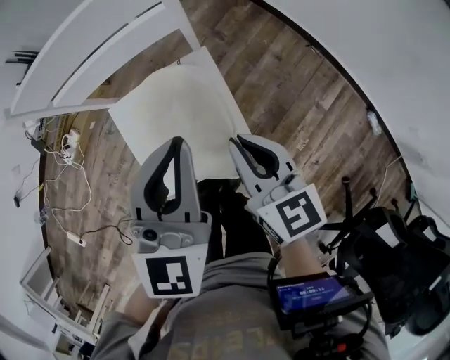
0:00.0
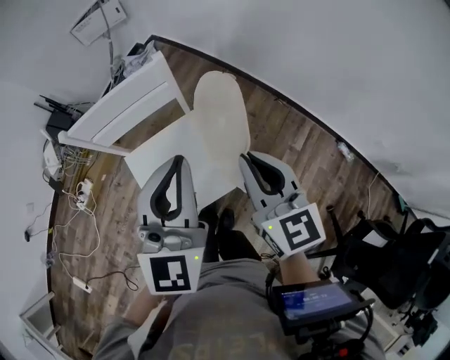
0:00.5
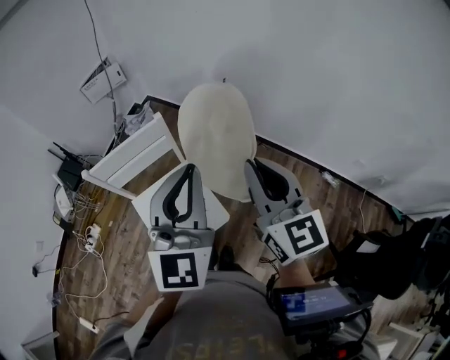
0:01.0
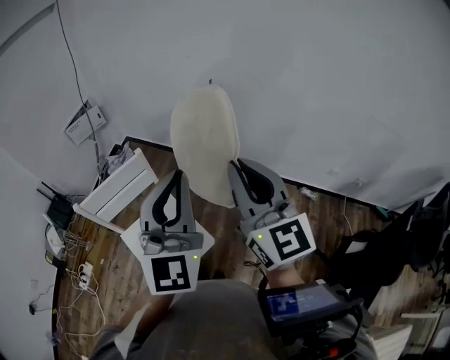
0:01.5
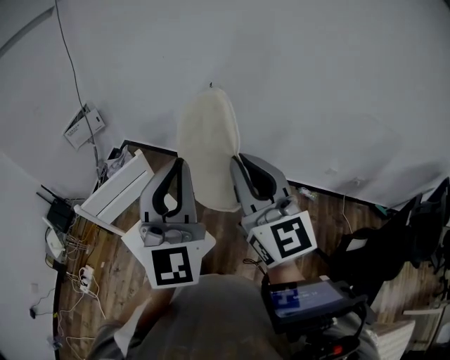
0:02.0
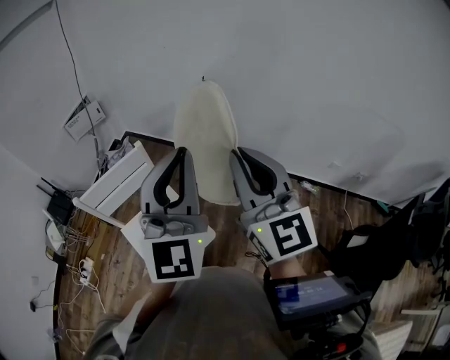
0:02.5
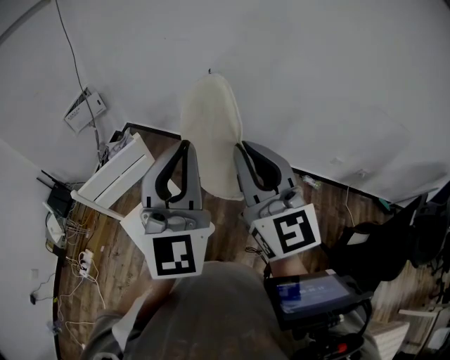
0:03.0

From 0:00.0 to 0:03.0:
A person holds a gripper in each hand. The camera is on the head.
From 0:00.0 to 0:01.5: The two grippers go roughly 35 cm upward. The right gripper angles its fingers upward, by approximately 30 degrees. The left gripper changes its angle by about 30 degrees.
From 0:01.5 to 0:03.0: The grippers move only a little.

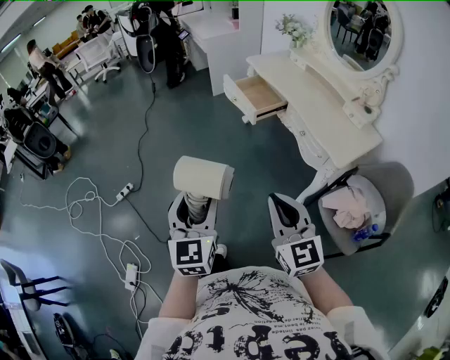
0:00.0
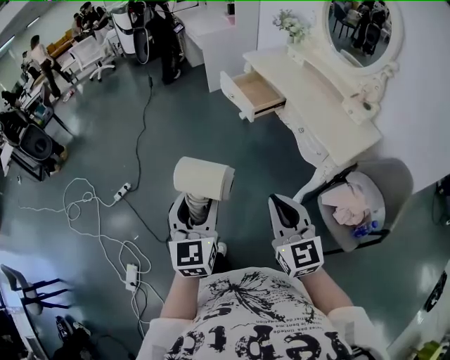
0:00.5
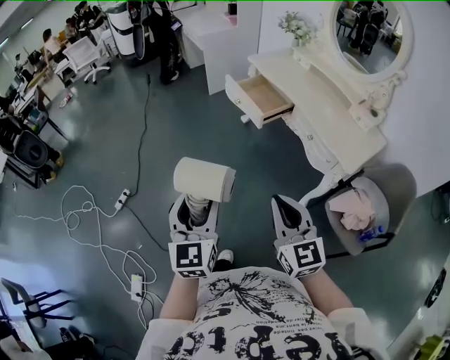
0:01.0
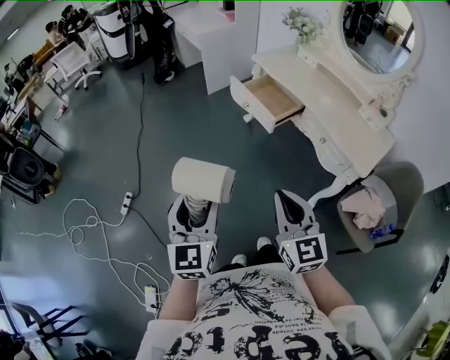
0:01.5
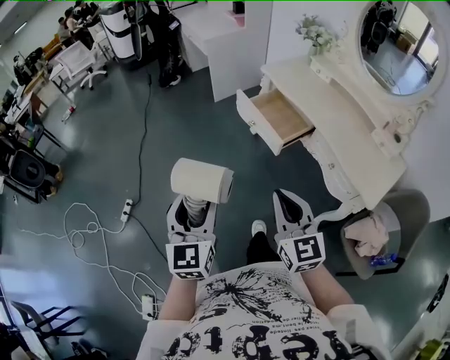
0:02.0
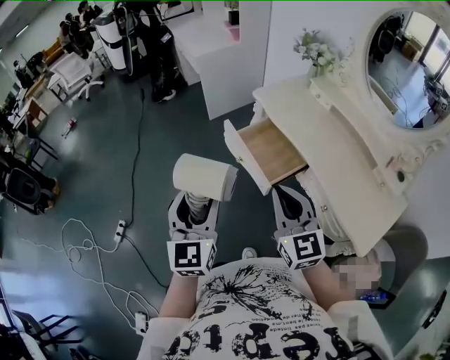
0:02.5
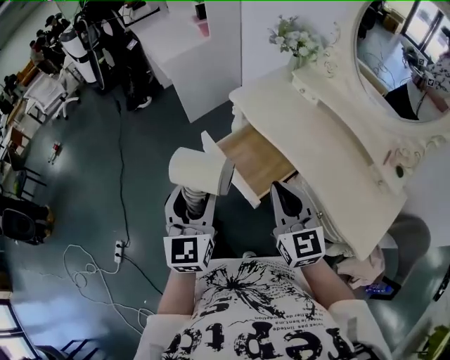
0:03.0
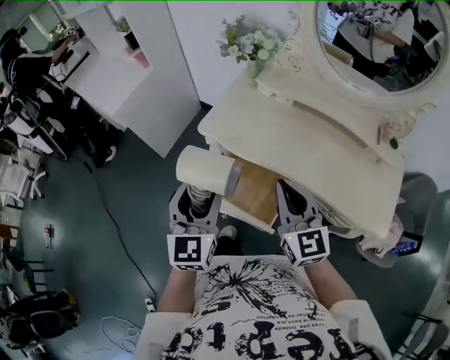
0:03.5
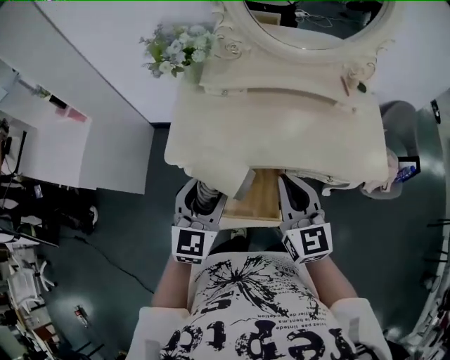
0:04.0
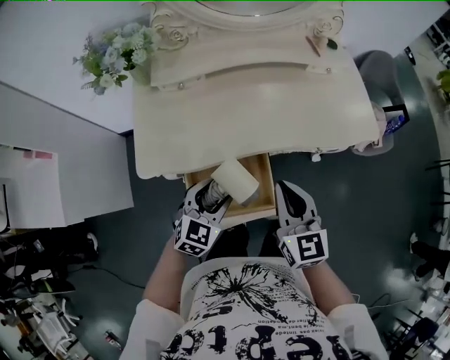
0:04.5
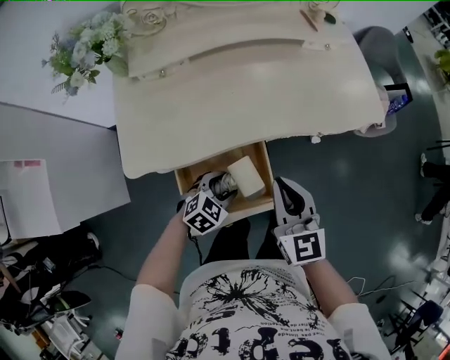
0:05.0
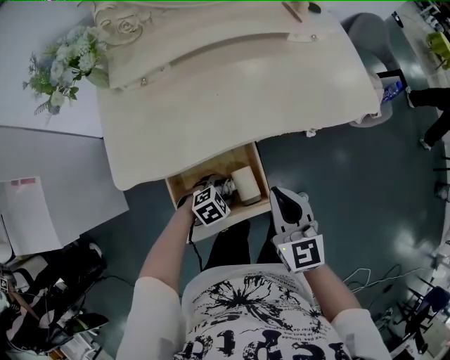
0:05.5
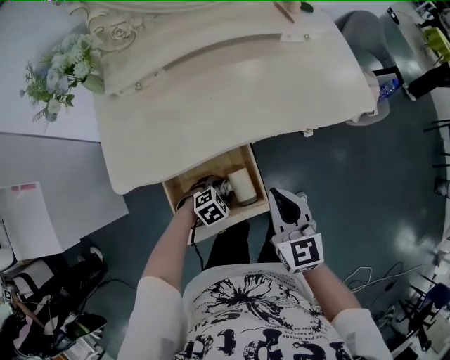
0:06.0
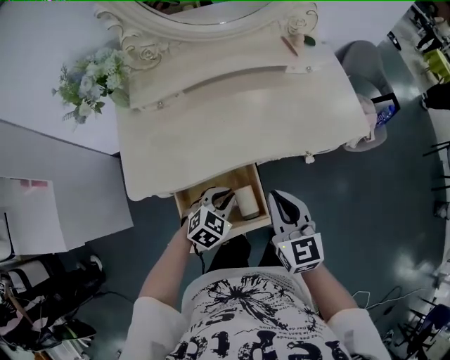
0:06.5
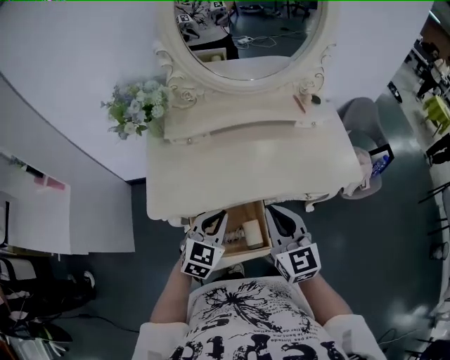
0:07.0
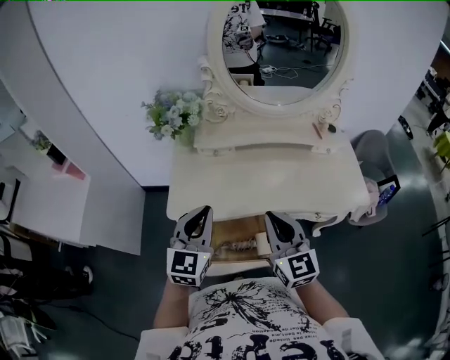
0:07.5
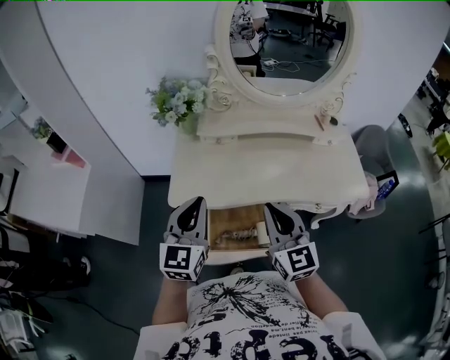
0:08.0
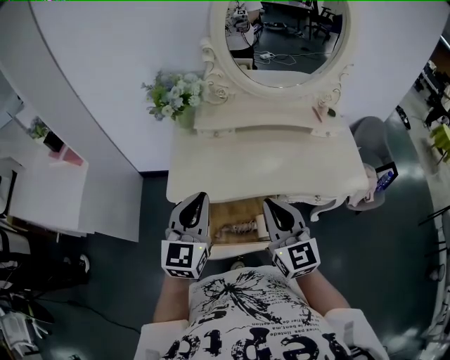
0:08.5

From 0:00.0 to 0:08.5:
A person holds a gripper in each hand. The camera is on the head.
From 0:00.0 to 0:02.0: The two grippers go roughly 30 cm forward.
From 0:02.0 to 0:04.0: The two grippers travel together, some 60 cm. The right gripper rotates approximately 60 degrees; the left gripper changes its angle by some 70 degrees.
From 0:04.0 to 0:06.5: The left gripper shifts roughly 20 cm downward, points its fingers about 30 degrees further downward, and closes, while the right gripper heads downward, covering roughly 10 cm, and swivels approximately 20 degrees.
From 0:06.5 to 0:08.5: The left gripper shifts approximately 30 cm upward, and tilts its fingers some 40 degrees upward. The right gripper shifts approximately 15 cm upward, and swivels about 20 degrees.

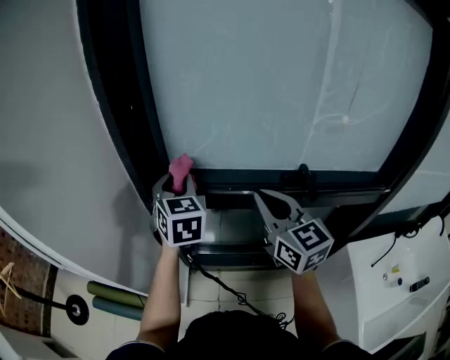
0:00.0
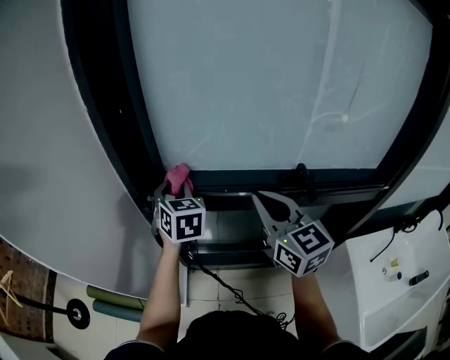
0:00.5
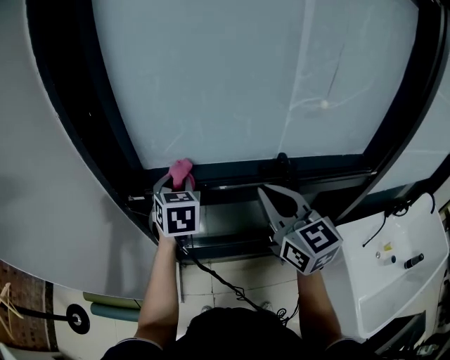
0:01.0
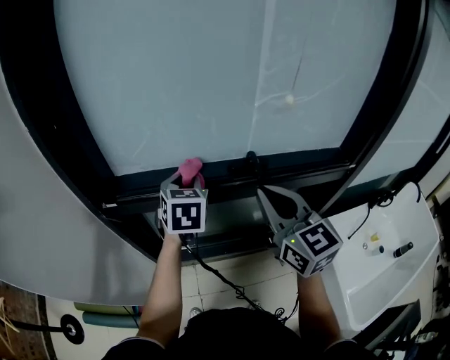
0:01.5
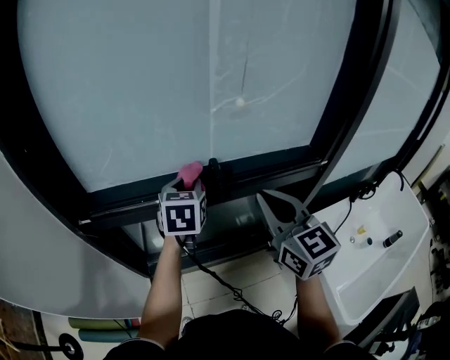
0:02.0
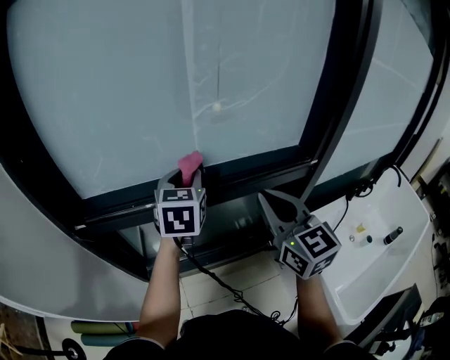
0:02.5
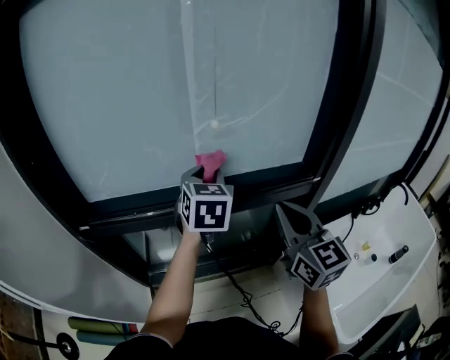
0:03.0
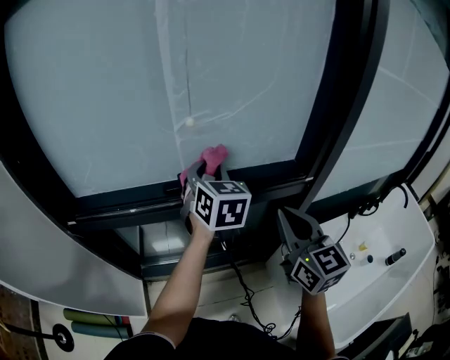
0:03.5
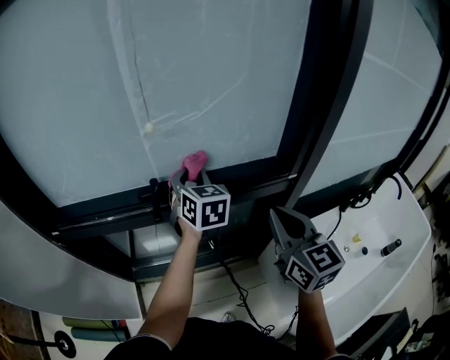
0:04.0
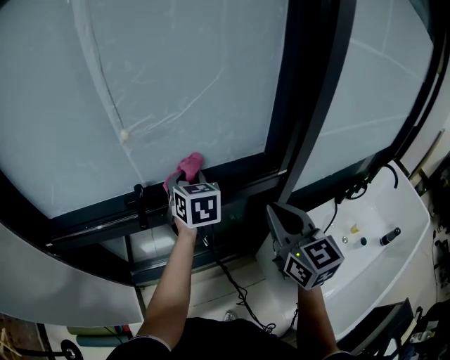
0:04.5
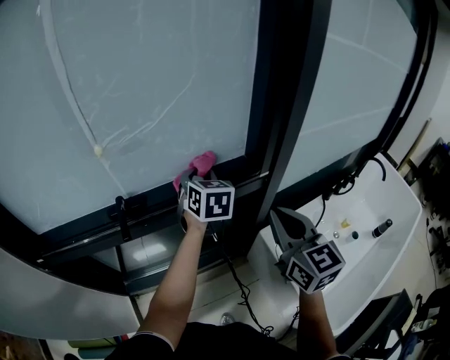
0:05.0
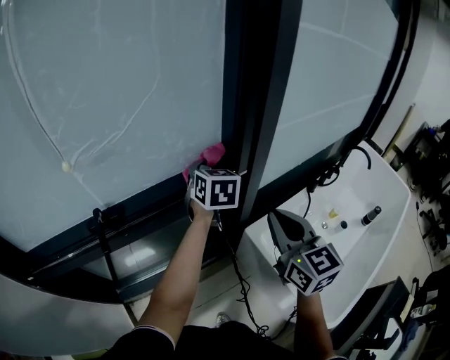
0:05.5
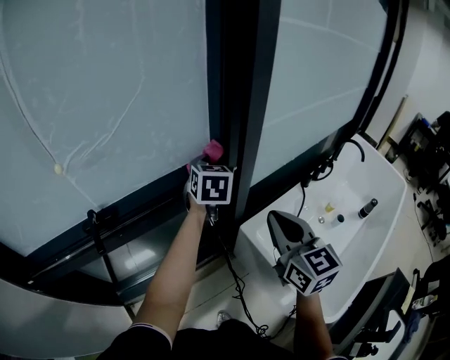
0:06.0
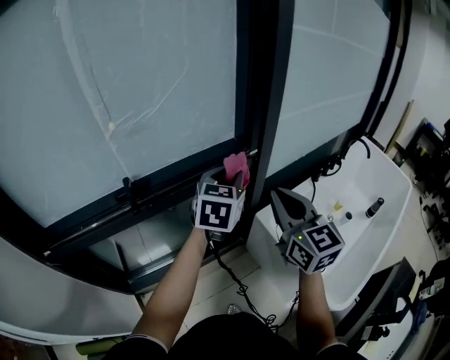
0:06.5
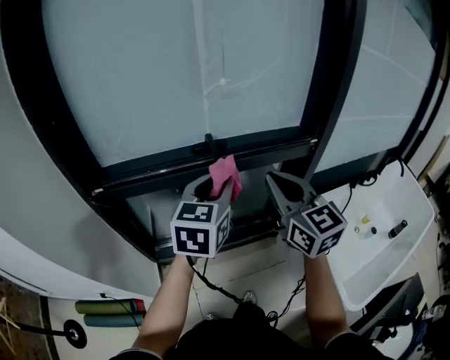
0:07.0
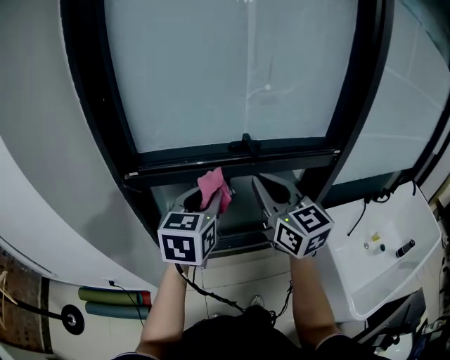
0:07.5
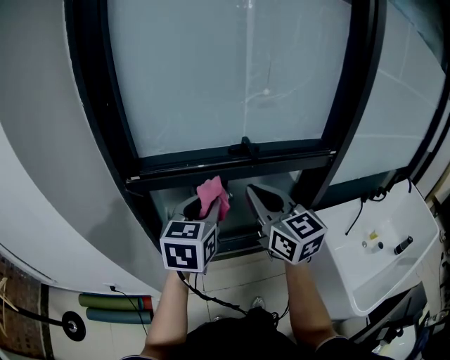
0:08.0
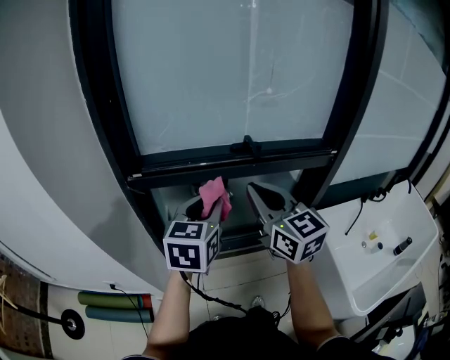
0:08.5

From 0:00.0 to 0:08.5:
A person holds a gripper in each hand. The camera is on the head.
From 0:00.0 to 0:02.0: The right gripper moves about 20 cm; the left gripper shifts by approximately 30 cm, and changes its angle by some 30 degrees.
From 0:02.0 to 0:04.0: The grippers both shift to the right by approximately 20 cm. The left gripper changes its angle by approximately 20 degrees.
From 0:04.0 to 0:06.5: The left gripper moves some 20 cm, and swivels some 40 degrees.
From 0:06.5 to 0:08.5: The left gripper shifts by approximately 40 cm, and changes its angle by some 30 degrees, while the right gripper moves roughly 35 cm, and swivels some 30 degrees.

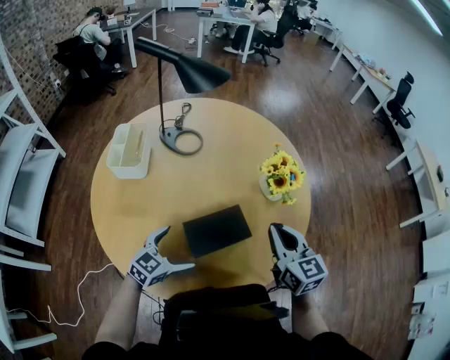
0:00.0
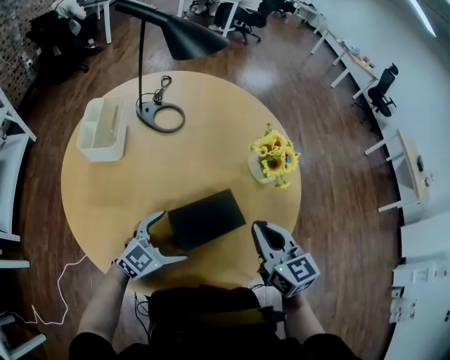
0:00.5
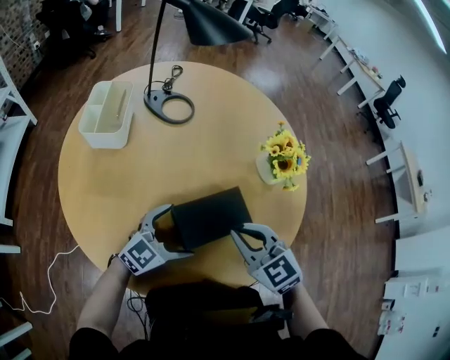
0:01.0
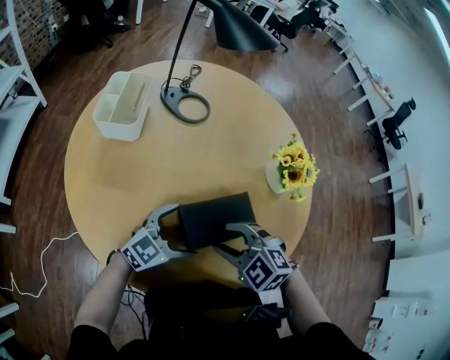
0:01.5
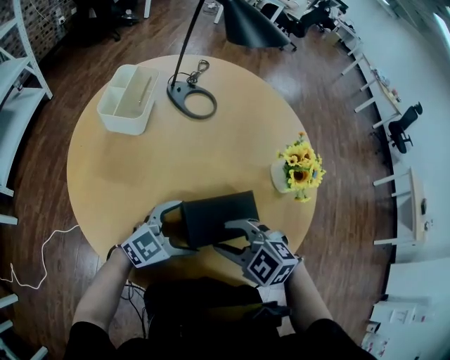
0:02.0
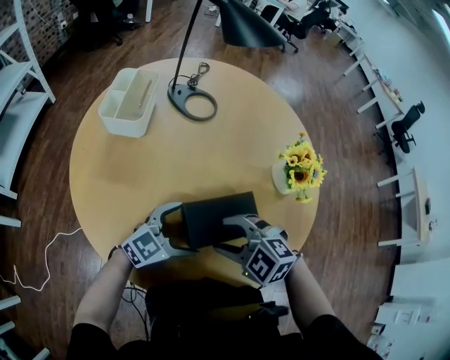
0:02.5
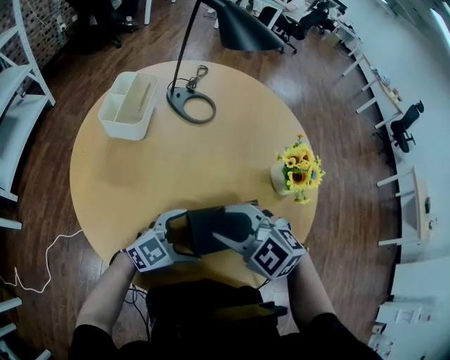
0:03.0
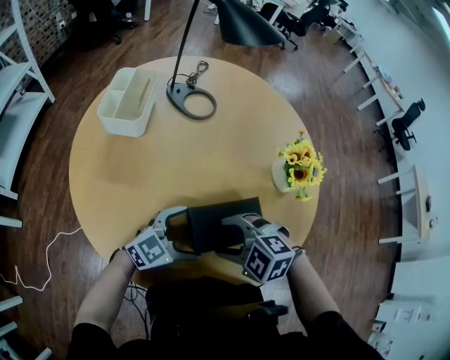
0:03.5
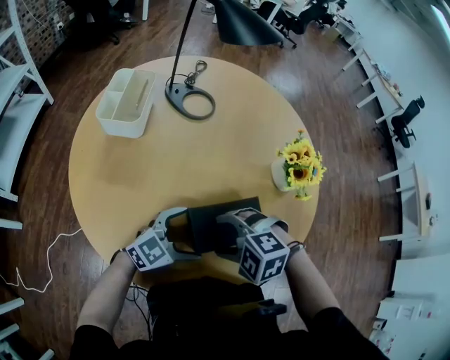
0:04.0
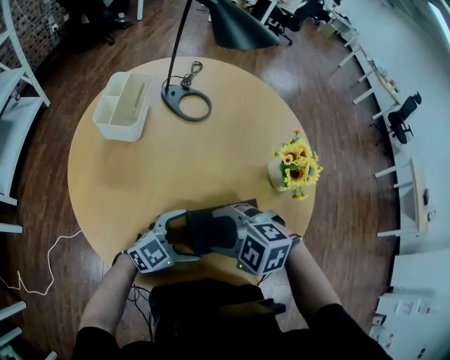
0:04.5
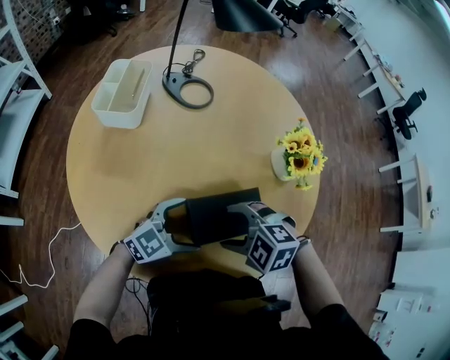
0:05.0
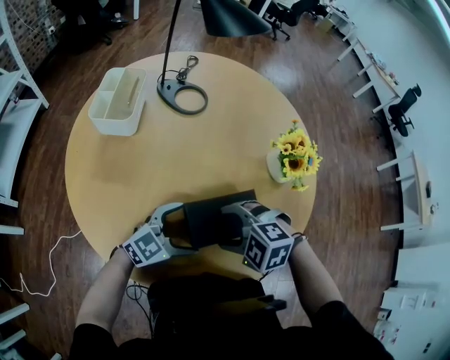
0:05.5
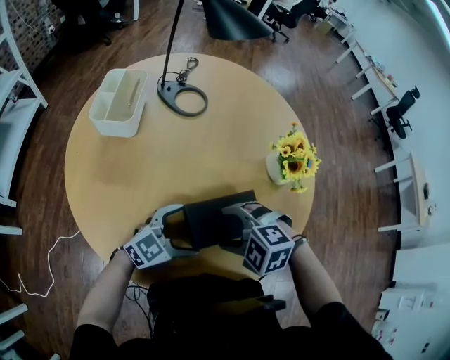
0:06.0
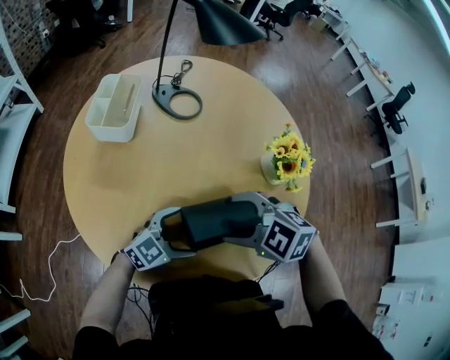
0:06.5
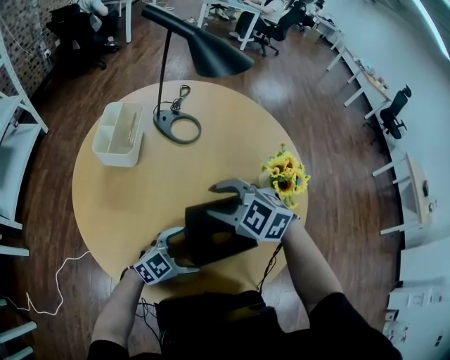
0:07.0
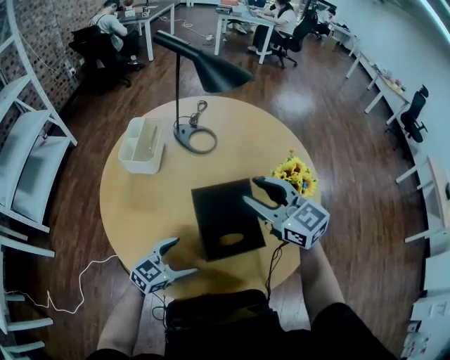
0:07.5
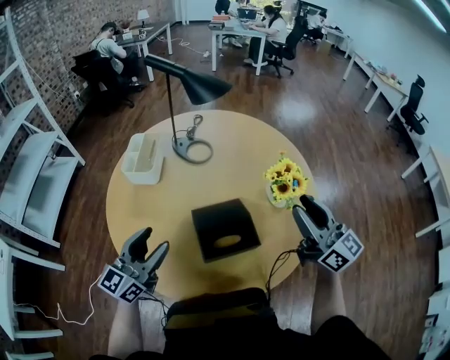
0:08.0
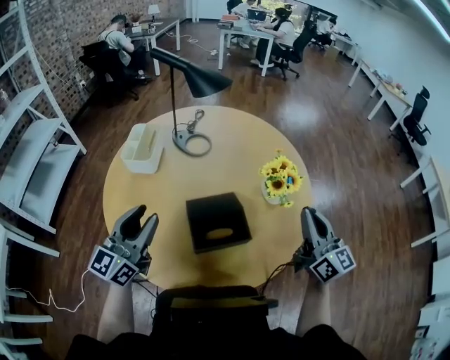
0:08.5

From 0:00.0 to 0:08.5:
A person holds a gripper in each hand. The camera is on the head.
From 0:00.0 to 0:02.0: The right gripper changes place by some 20 cm, angles its fingers downward, by approximately 30 degrees, and opens its fingers.
From 0:02.0 to 0:04.0: The right gripper rotates approximately 20 degrees, and opens its fingers.
From 0:04.0 to 0:06.5: The right gripper moves upward, roughly 5 cm.
From 0:06.5 to 0:08.5: The left gripper goes some 25 cm upward, changes its angle by approximately 50 degrees, and closes up; the right gripper moves approximately 30 cm, points its fingers some 60 degrees further upward, and closes its fingers.
